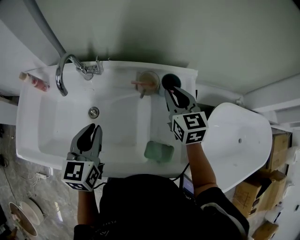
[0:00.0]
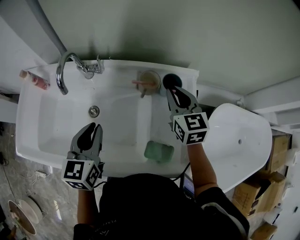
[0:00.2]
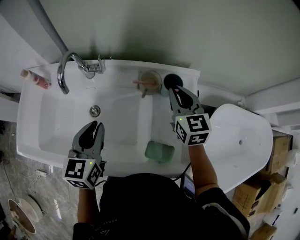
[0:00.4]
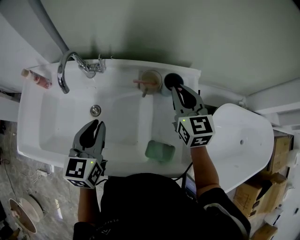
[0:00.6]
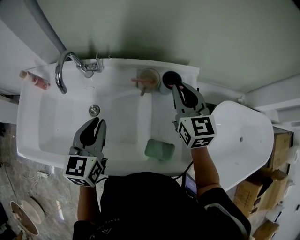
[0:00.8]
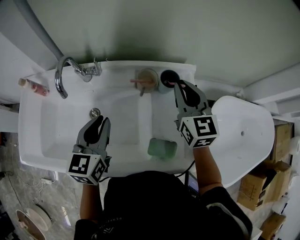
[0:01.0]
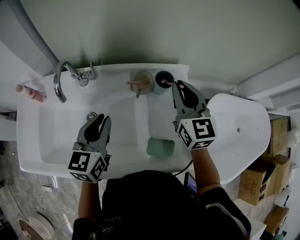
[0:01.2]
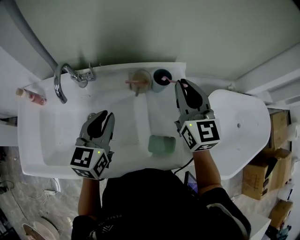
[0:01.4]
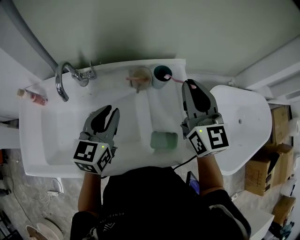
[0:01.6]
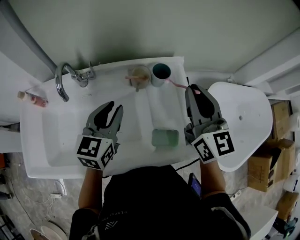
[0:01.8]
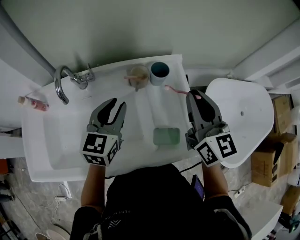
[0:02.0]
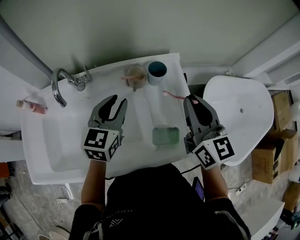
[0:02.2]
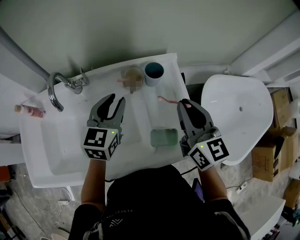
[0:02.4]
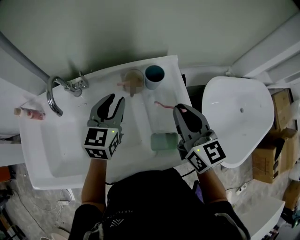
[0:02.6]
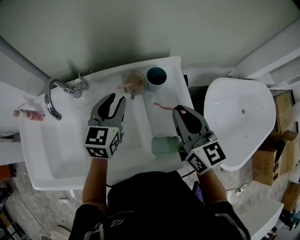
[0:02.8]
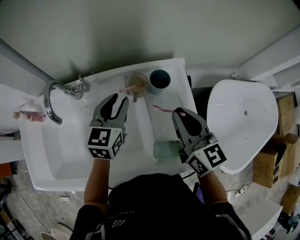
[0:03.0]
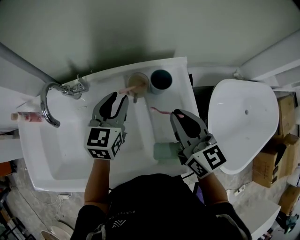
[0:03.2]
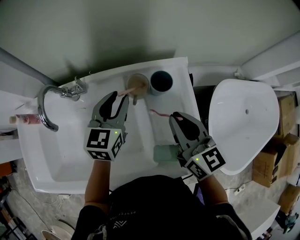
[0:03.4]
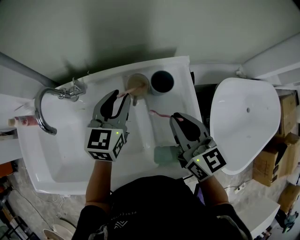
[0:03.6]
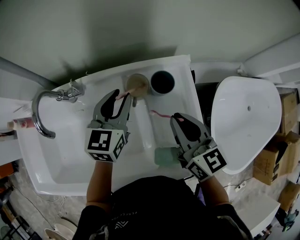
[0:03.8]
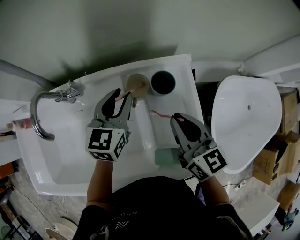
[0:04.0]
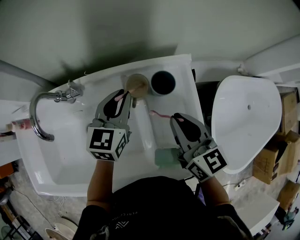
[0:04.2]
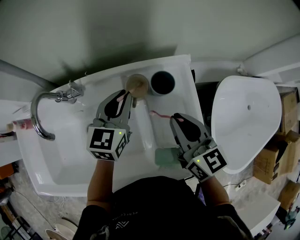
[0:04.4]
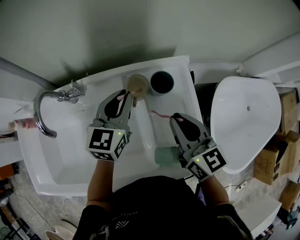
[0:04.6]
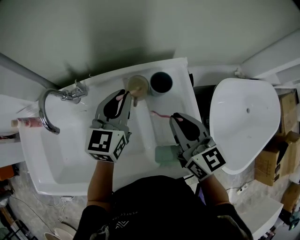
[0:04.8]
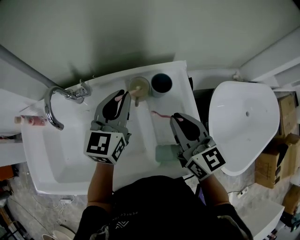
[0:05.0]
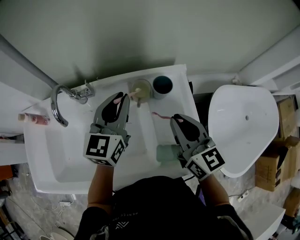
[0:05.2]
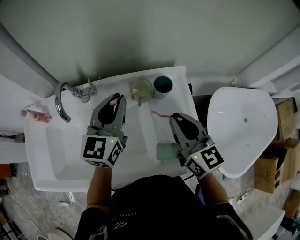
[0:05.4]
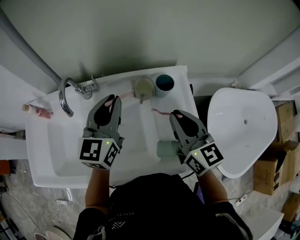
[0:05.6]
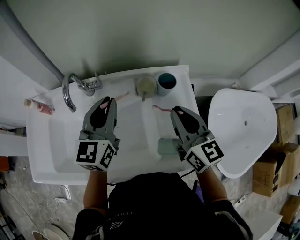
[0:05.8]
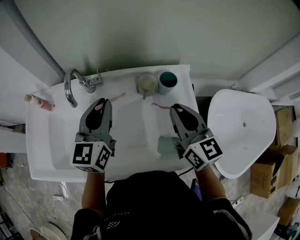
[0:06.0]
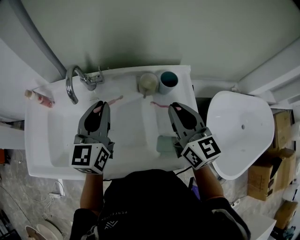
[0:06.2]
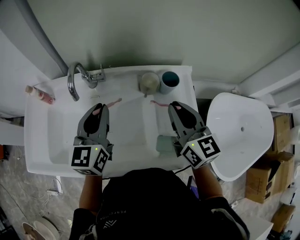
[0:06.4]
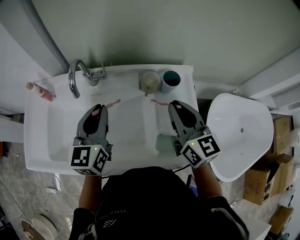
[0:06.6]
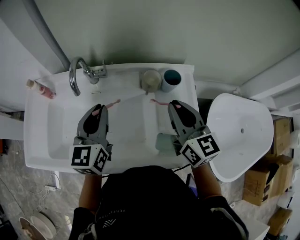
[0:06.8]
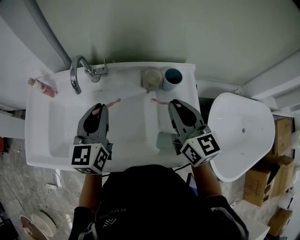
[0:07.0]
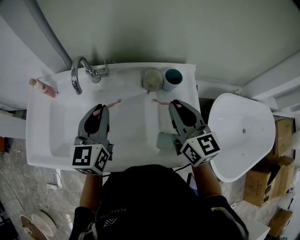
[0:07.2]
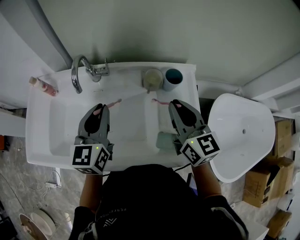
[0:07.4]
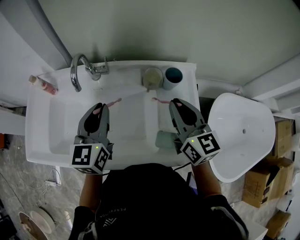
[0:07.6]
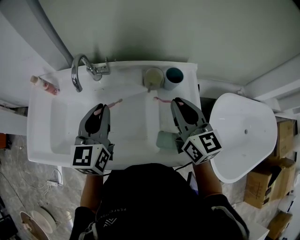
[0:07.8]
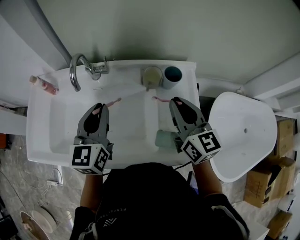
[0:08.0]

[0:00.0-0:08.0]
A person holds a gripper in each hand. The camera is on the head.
0:00.0 to 0:01.6: The left gripper shifts approximately 5 cm to the right, while the right gripper moves upward and backward, about 15 cm, and changes its angle by about 20 degrees.
0:01.6 to 0:03.2: The left gripper shifts some 10 cm forward. Meanwhile the right gripper is displaced downward by roughly 10 cm, and rotates roughly 20 degrees.
0:03.2 to 0:04.8: The grippers make only small movements.
0:04.8 to 0:06.4: The left gripper moves to the left, backward and upward, some 20 cm; the right gripper moves upward, some 5 cm.
0:06.4 to 0:08.0: The grippers move only a little.

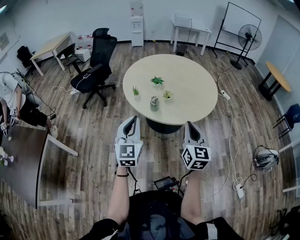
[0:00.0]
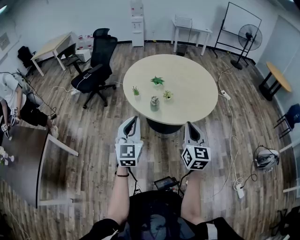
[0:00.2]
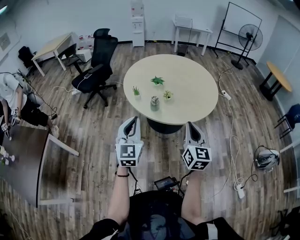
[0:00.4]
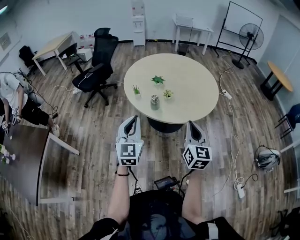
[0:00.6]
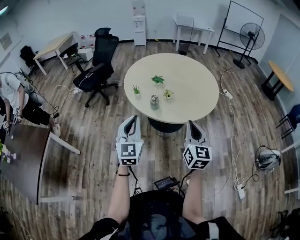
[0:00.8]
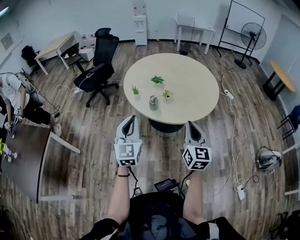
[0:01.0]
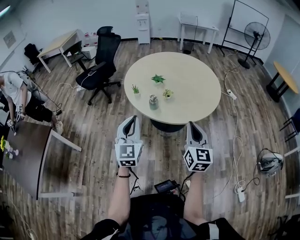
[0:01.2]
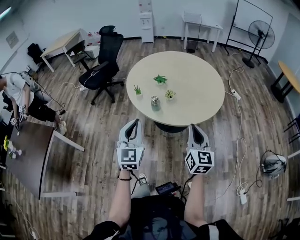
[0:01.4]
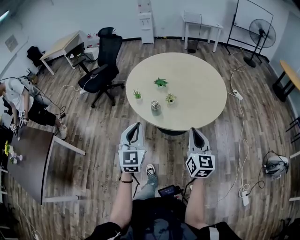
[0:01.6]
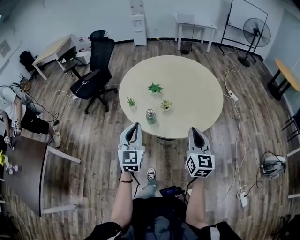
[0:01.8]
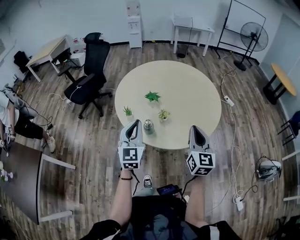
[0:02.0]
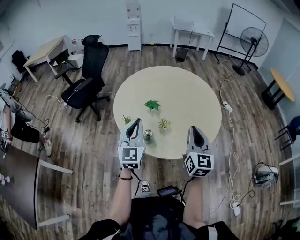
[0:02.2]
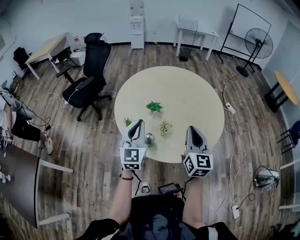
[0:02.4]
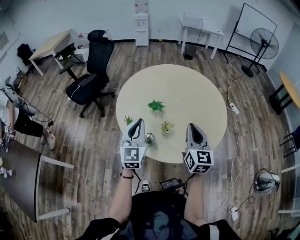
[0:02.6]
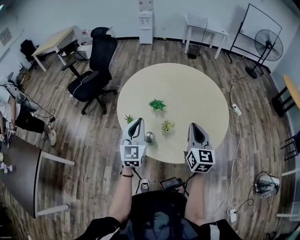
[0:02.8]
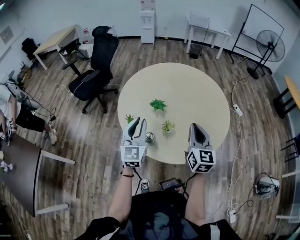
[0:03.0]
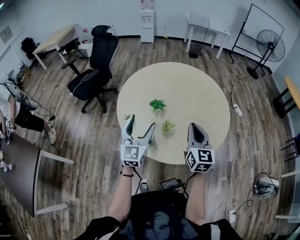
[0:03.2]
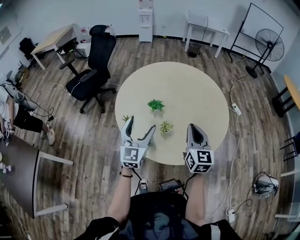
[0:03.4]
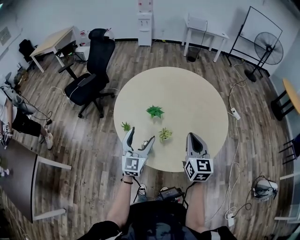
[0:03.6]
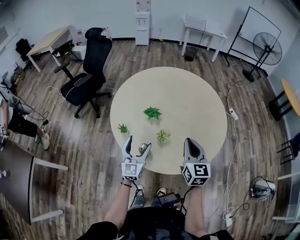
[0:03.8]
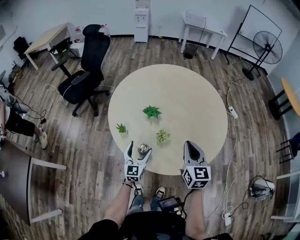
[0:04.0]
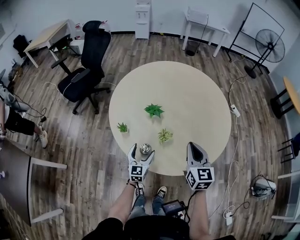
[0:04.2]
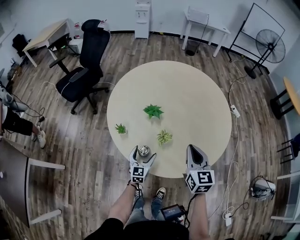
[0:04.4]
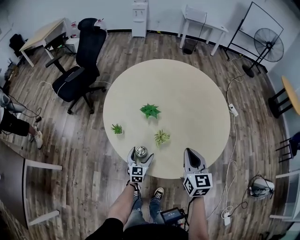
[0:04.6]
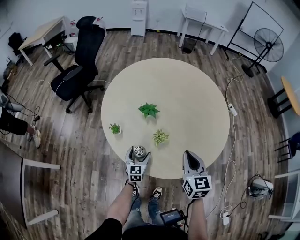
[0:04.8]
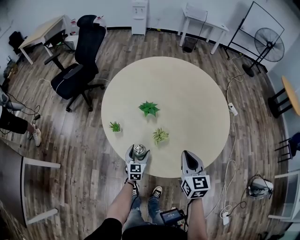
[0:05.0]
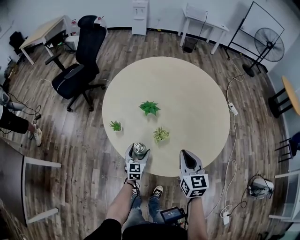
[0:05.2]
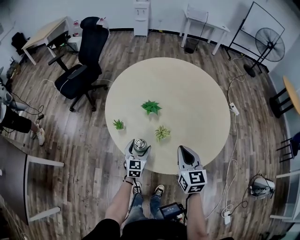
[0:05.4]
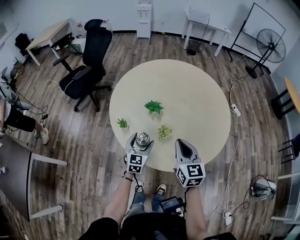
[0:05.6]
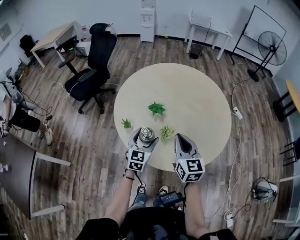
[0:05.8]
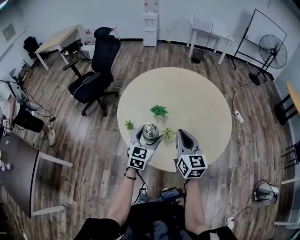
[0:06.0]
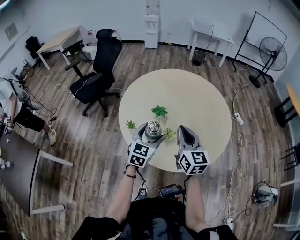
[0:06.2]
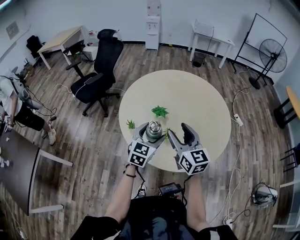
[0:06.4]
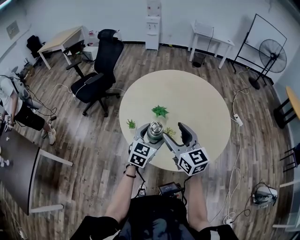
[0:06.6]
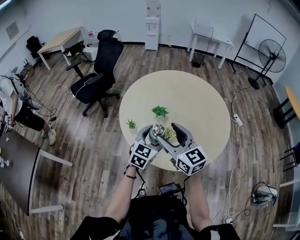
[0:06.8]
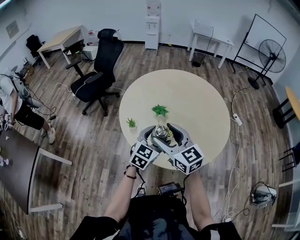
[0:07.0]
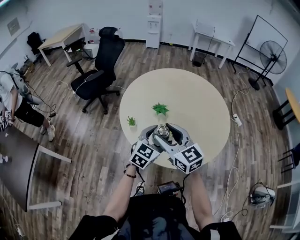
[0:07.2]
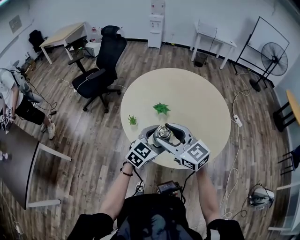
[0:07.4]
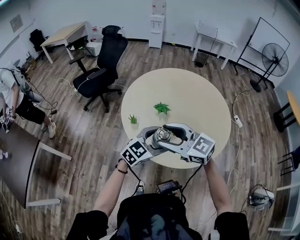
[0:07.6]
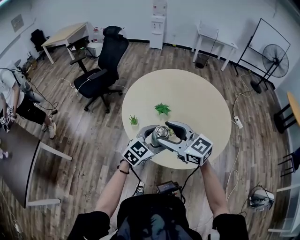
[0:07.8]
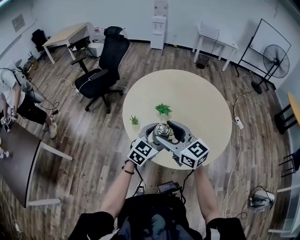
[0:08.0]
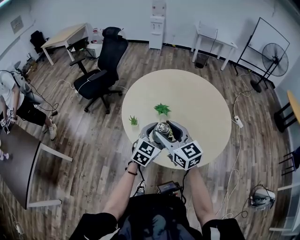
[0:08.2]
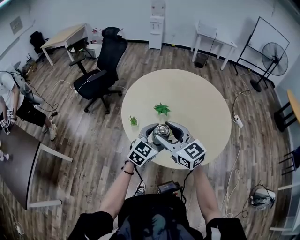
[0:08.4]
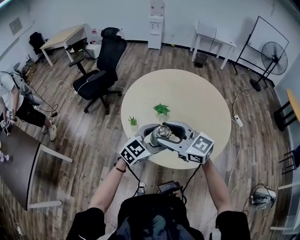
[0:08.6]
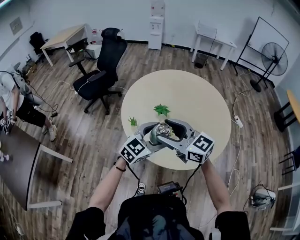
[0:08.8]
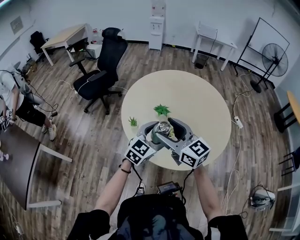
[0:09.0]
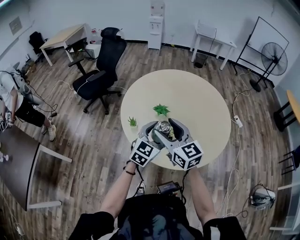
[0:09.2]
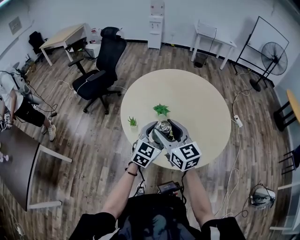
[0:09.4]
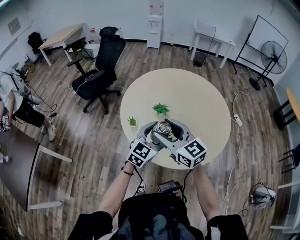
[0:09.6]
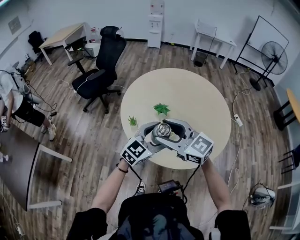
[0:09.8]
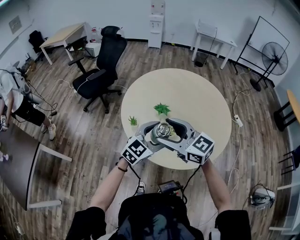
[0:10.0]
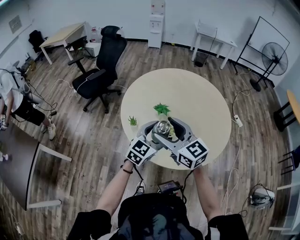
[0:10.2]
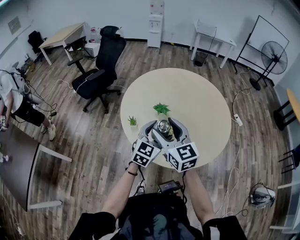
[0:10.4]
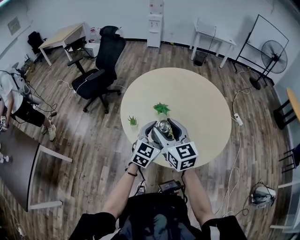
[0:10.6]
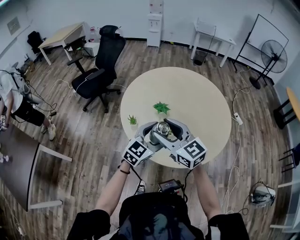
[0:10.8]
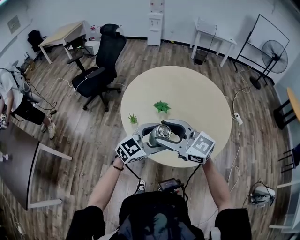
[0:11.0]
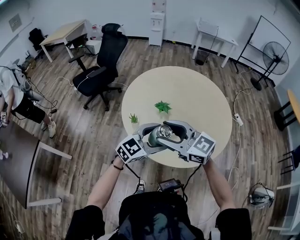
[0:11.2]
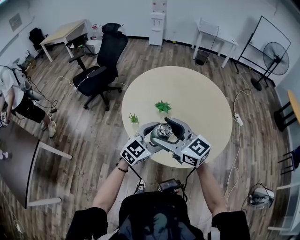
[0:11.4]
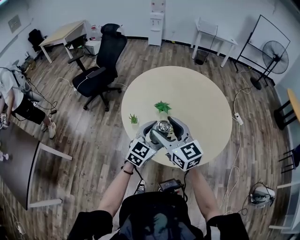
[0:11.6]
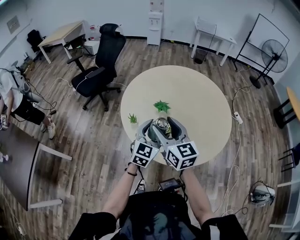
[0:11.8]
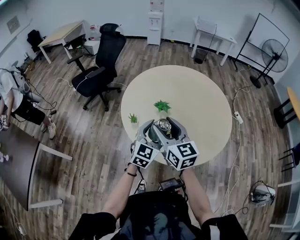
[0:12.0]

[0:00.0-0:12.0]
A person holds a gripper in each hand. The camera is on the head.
0:00.0 to 0:01.6: The two grippers go about 10 cm to the right and forward.
0:01.6 to 0:03.0: Both grippers move forward, approximately 25 cm.
0:03.0 to 0:04.4: The left gripper moves downward, roughly 30 cm, and opens its fingers. Meanwhile the right gripper heads downward, covering some 10 cm.
0:04.4 to 0:06.0: The left gripper moves upward, some 20 cm. Meanwhile the right gripper shifts about 10 cm upward and to the left.
0:06.0 to 0:07.6: The left gripper moves backward, roughly 10 cm, and swivels approximately 30 degrees. Meanwhile the right gripper travels to the left, backward and upward by about 15 cm, rotates some 50 degrees, and opens its fingers.
0:07.6 to 0:09.0: The right gripper turns by approximately 20 degrees.
0:09.0 to 0:10.4: The grippers stay close to where they were, moving slightly.

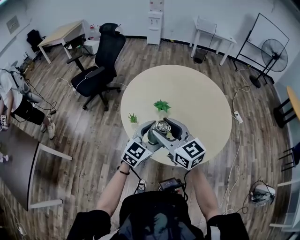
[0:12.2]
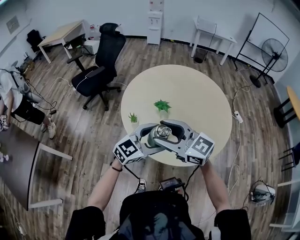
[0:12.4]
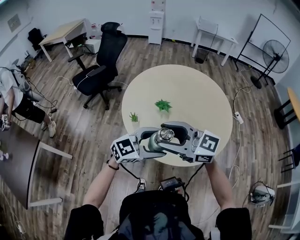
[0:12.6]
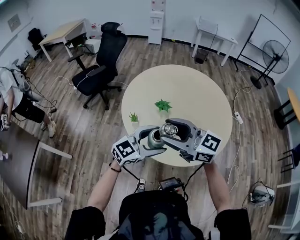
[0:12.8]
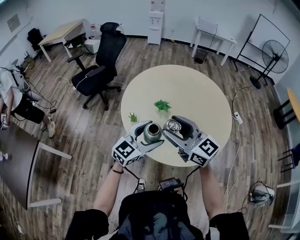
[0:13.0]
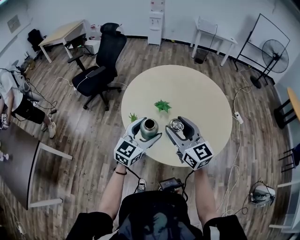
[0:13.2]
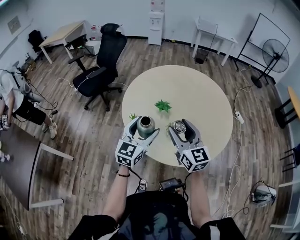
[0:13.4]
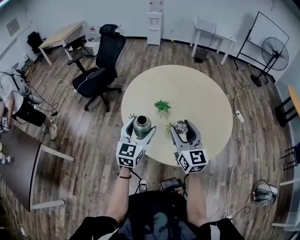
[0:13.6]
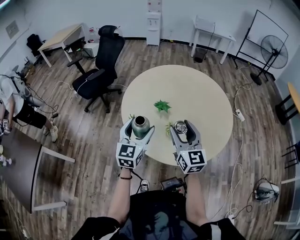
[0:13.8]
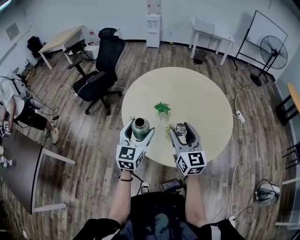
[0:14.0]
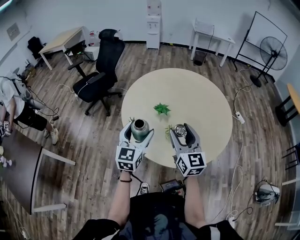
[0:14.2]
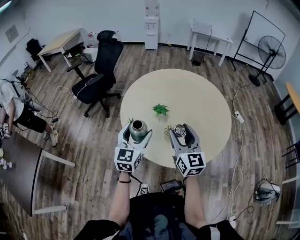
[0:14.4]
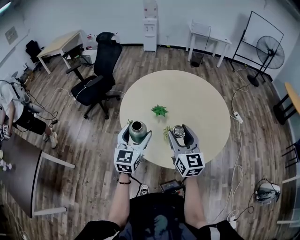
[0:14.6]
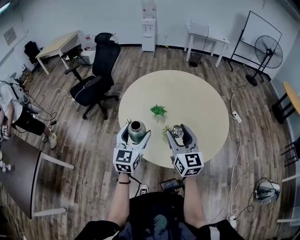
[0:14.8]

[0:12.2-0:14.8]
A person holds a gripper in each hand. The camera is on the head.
0:12.2 to 0:13.4: The right gripper ends up about 10 cm from where it was, while the left gripper shifts by roughly 5 cm.
0:13.4 to 0:14.8: The grippers move only a little.

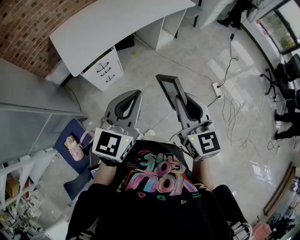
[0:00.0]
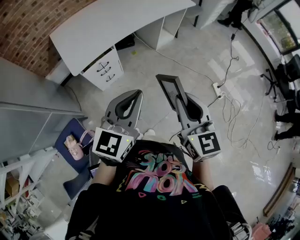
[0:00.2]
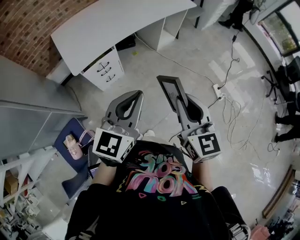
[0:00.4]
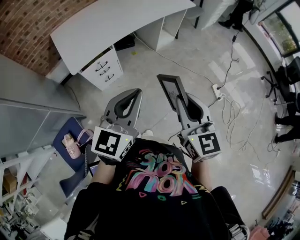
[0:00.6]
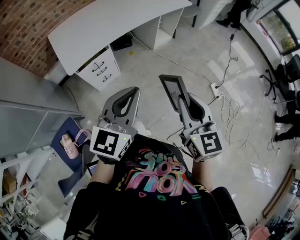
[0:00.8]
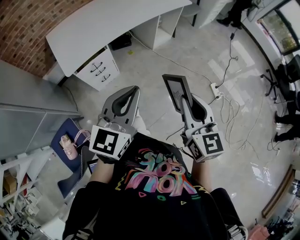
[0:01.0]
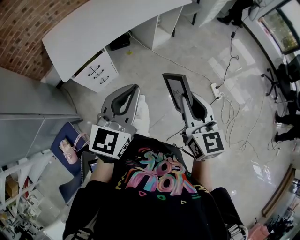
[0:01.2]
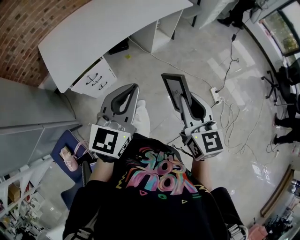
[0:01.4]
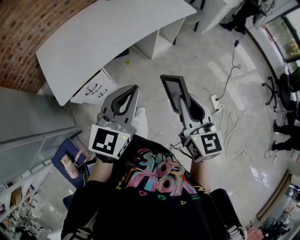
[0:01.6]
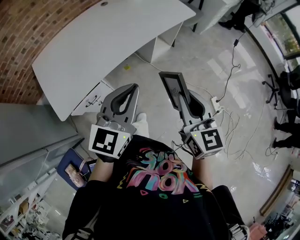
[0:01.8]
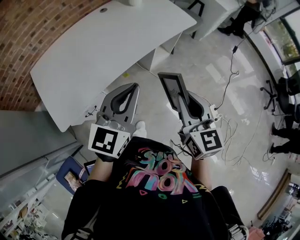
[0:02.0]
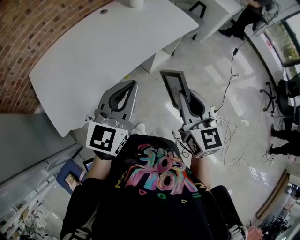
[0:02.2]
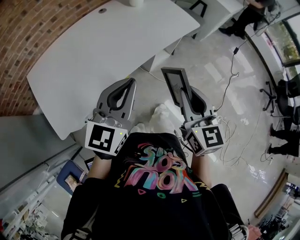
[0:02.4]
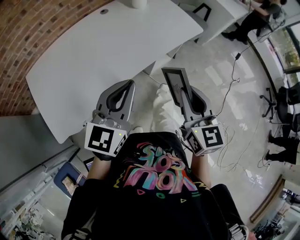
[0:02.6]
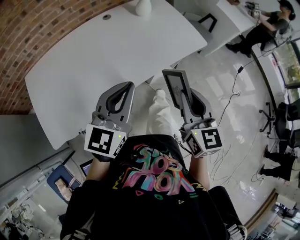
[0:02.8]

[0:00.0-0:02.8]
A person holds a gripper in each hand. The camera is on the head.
0:00.0 to 0:01.4: The left gripper is displaced forward by approximately 15 cm; the right gripper heads forward and to the right, covering approximately 15 cm.
0:01.4 to 0:02.8: Both grippers are carried forward, some 50 cm.
